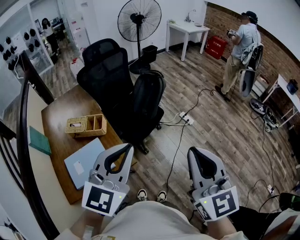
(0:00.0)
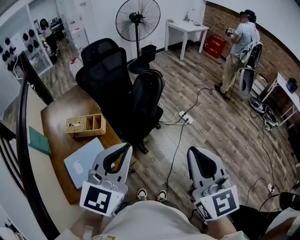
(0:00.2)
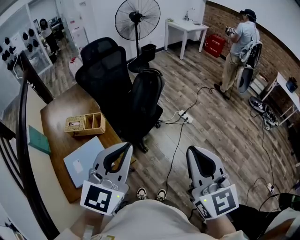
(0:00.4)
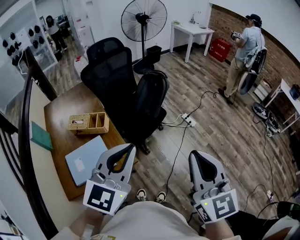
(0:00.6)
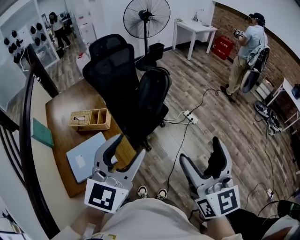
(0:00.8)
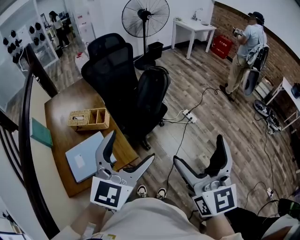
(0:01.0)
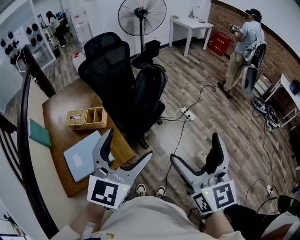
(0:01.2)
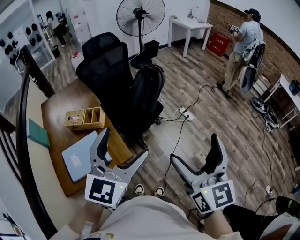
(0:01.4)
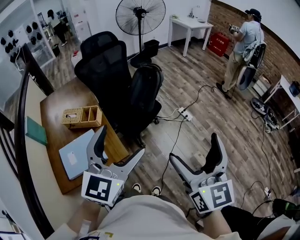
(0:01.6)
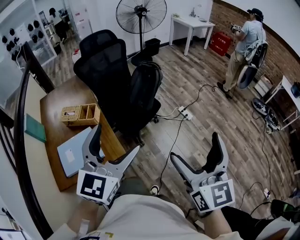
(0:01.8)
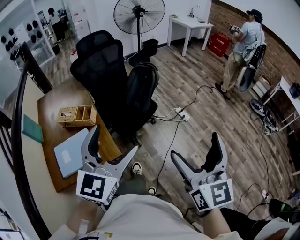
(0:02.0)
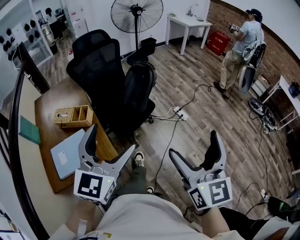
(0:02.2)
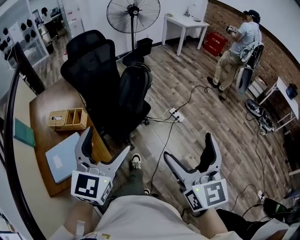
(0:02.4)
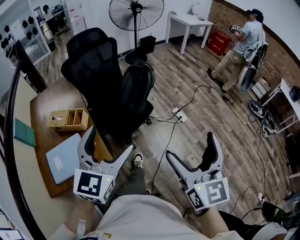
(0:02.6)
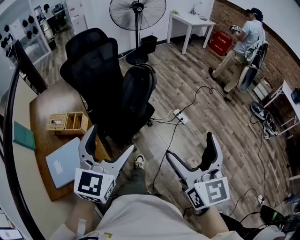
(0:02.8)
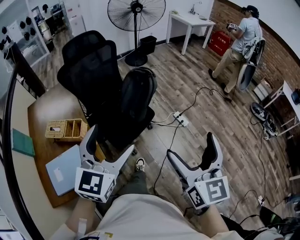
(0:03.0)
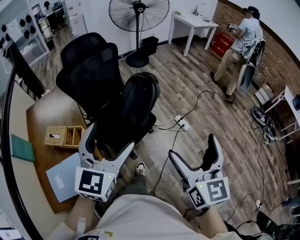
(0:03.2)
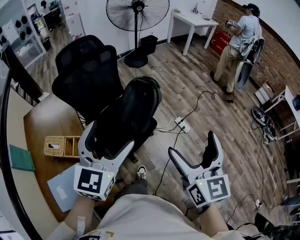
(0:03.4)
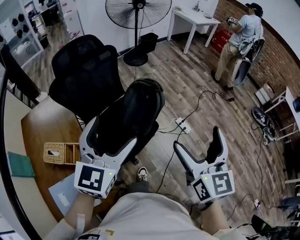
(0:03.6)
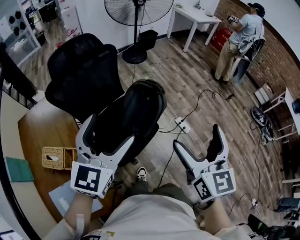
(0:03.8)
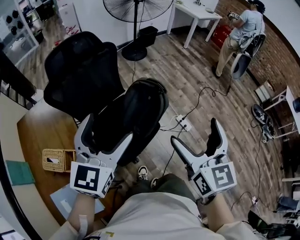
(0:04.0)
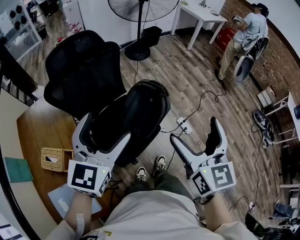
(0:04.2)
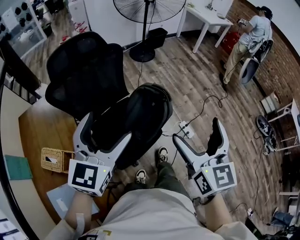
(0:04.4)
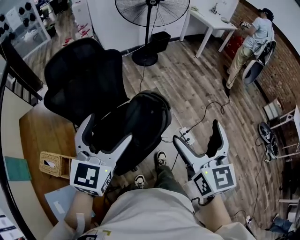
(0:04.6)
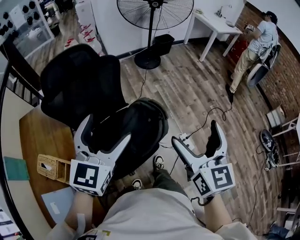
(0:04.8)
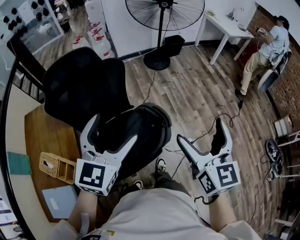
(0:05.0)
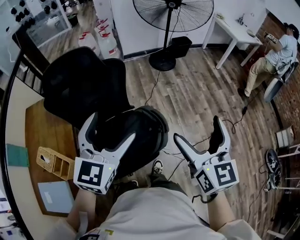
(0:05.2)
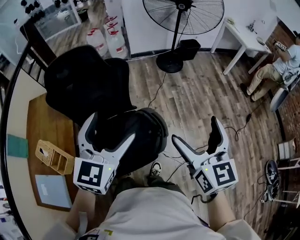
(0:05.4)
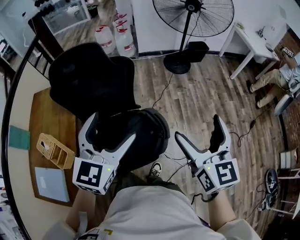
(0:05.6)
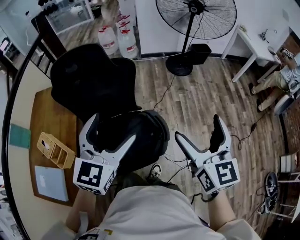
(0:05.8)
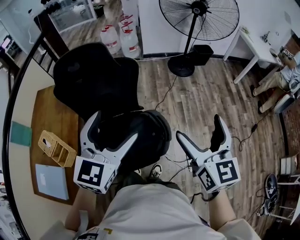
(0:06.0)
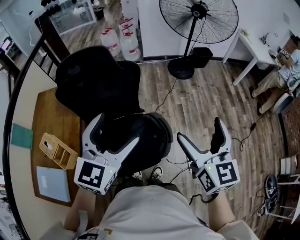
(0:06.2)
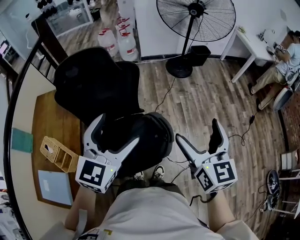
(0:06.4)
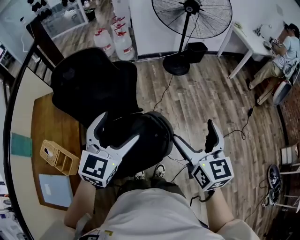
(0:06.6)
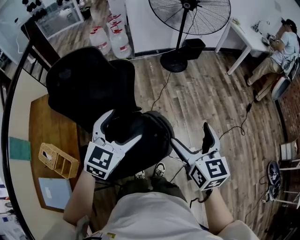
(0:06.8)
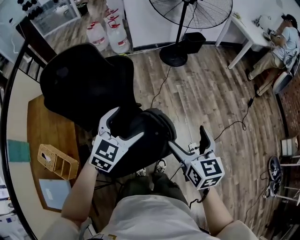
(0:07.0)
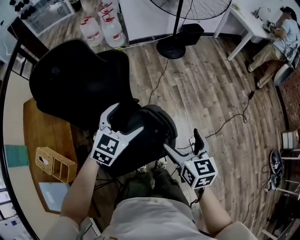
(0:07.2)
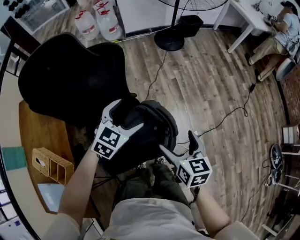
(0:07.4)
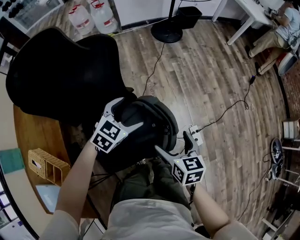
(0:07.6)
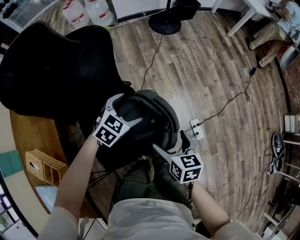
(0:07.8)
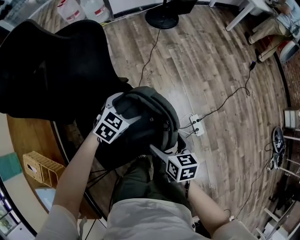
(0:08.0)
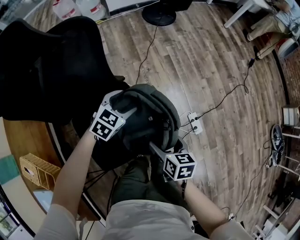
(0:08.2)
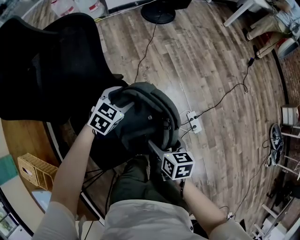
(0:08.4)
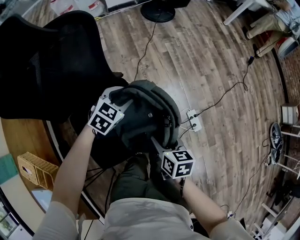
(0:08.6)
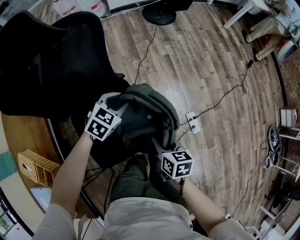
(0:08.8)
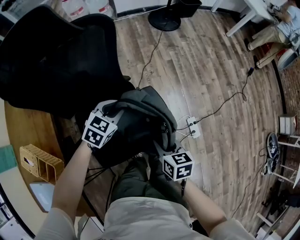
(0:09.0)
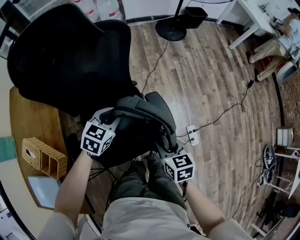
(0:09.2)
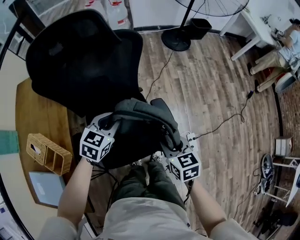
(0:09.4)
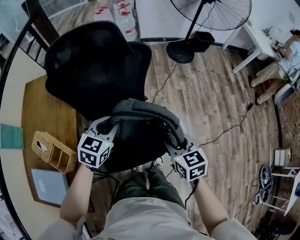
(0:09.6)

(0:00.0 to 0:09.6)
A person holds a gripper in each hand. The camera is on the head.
0:00.0 - 0:01.6: The right gripper shifts roughly 5 cm to the right, and opens its fingers, while the left gripper opens.
0:01.6 - 0:03.2: The grippers both shift forward by approximately 25 cm.
0:03.2 - 0:04.8: Both grippers move forward, some 35 cm.
0:04.8 - 0:06.4: The left gripper shifts approximately 10 cm forward and to the right. The right gripper heads forward, covering about 15 cm.
0:06.4 - 0:08.0: Both grippers move downward, roughly 40 cm. The right gripper angles its fingers downward, by some 30 degrees. The left gripper points its fingers about 30 degrees further downward.
0:08.0 - 0:09.6: The left gripper shifts roughly 30 cm upward, to the left and backward, changes its angle by about 40 degrees, and closes up. The right gripper is displaced upward and to the left by approximately 20 cm, changes its angle by some 30 degrees, and closes.

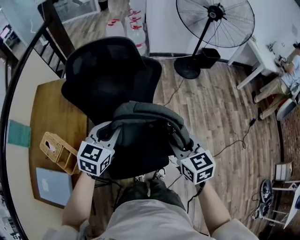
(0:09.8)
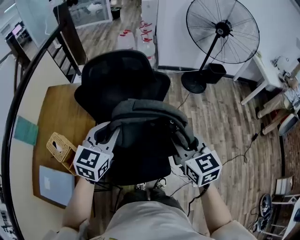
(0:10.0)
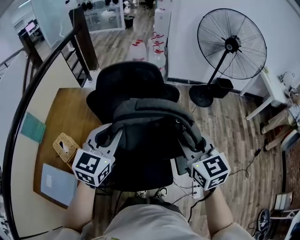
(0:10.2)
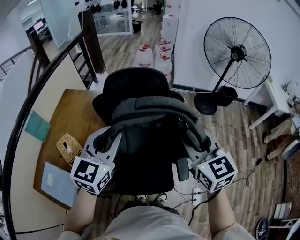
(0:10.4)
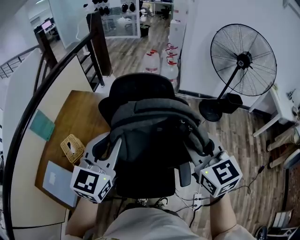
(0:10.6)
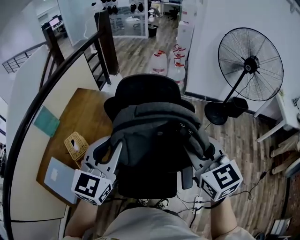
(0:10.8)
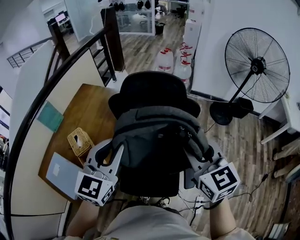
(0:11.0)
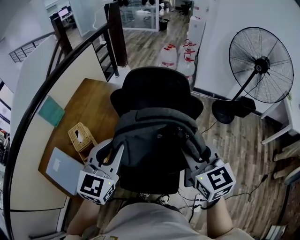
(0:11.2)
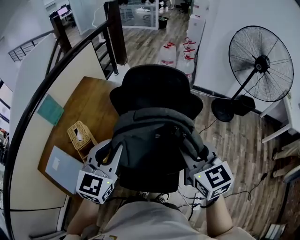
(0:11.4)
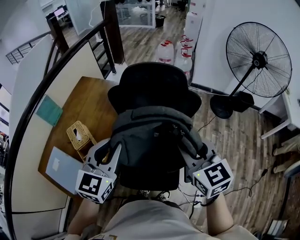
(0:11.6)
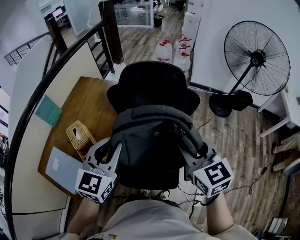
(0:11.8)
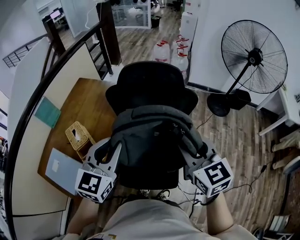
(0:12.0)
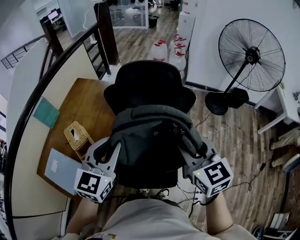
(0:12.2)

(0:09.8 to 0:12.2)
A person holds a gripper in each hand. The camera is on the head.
0:09.8 - 0:11.0: Both grippers move upward and to the left, some 20 cm. The left gripper rotates some 30 degrees. The right gripper turns by about 30 degrees.
0:11.0 - 0:12.2: The grippers stay close to where they were, moving slightly.

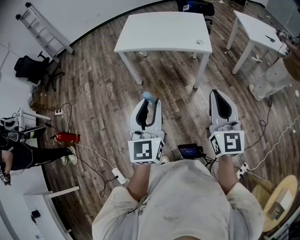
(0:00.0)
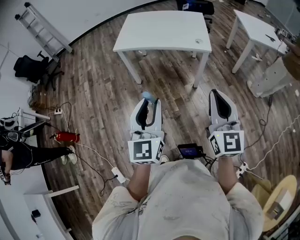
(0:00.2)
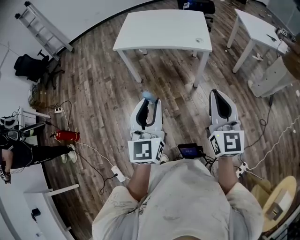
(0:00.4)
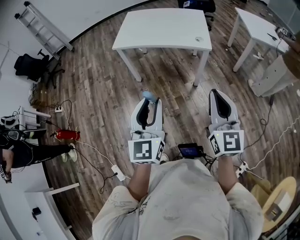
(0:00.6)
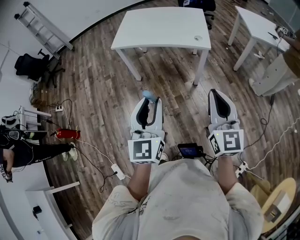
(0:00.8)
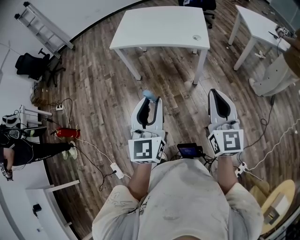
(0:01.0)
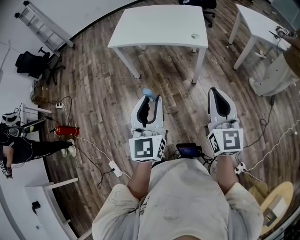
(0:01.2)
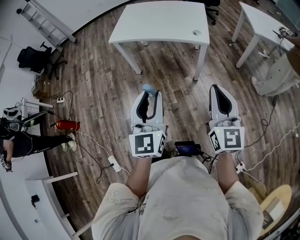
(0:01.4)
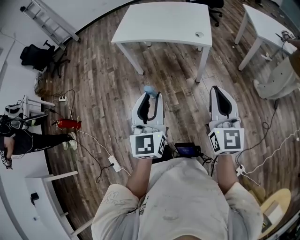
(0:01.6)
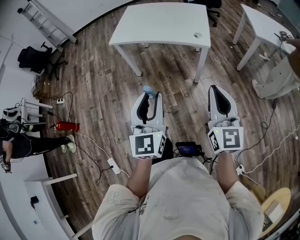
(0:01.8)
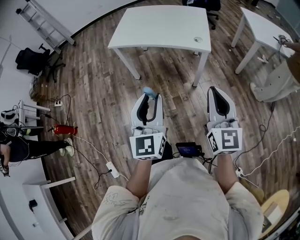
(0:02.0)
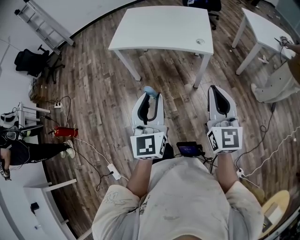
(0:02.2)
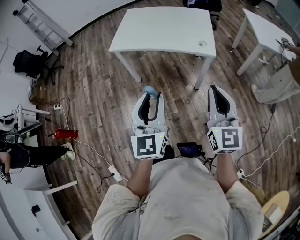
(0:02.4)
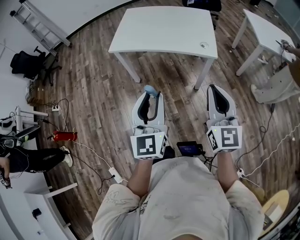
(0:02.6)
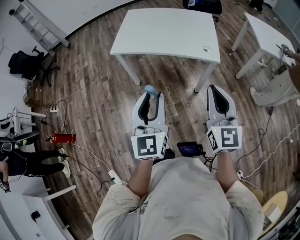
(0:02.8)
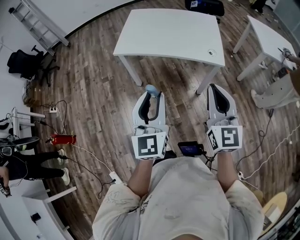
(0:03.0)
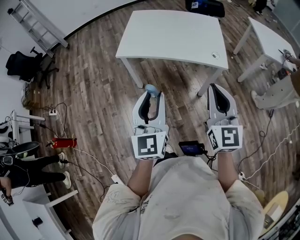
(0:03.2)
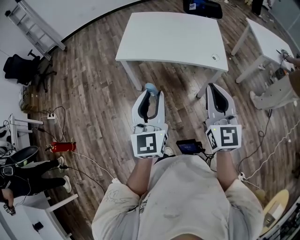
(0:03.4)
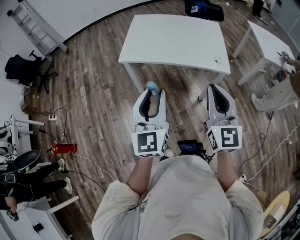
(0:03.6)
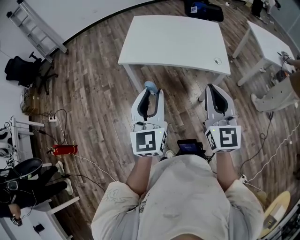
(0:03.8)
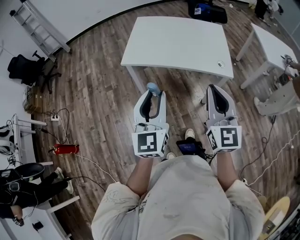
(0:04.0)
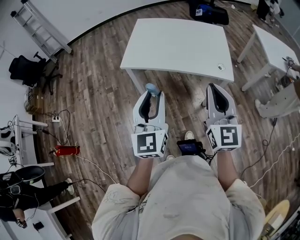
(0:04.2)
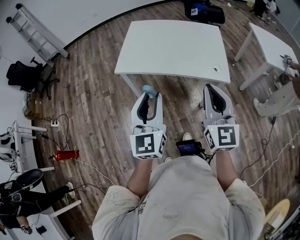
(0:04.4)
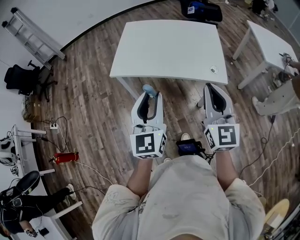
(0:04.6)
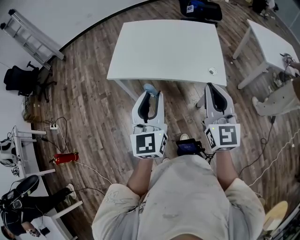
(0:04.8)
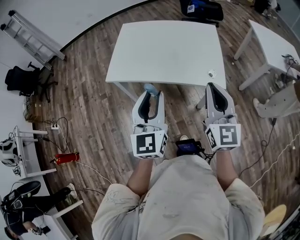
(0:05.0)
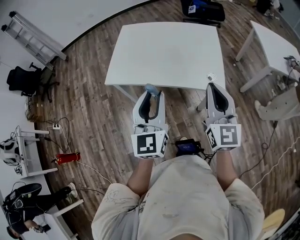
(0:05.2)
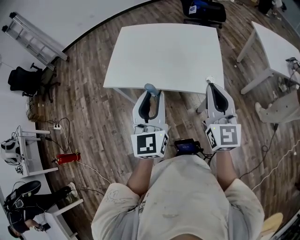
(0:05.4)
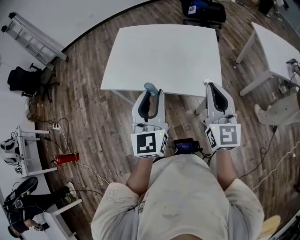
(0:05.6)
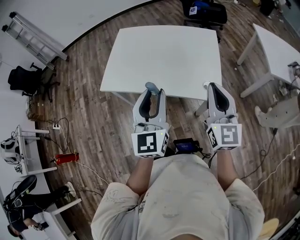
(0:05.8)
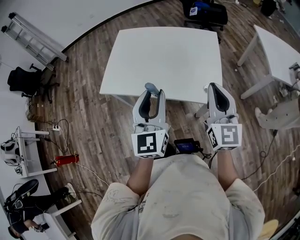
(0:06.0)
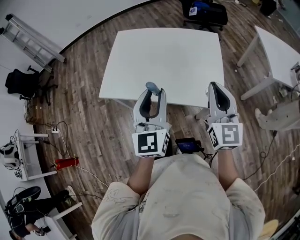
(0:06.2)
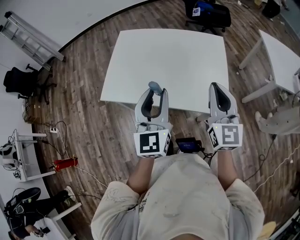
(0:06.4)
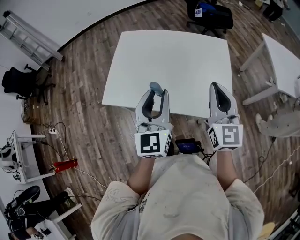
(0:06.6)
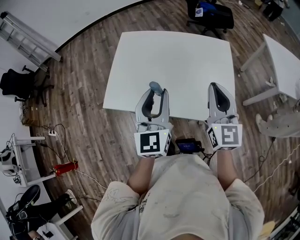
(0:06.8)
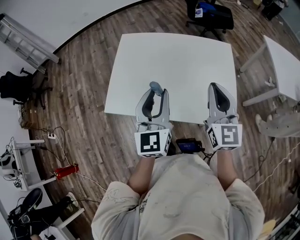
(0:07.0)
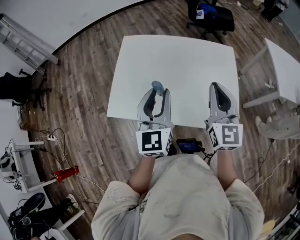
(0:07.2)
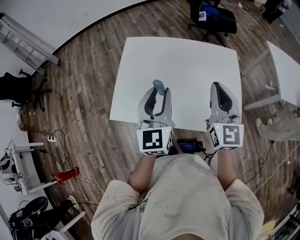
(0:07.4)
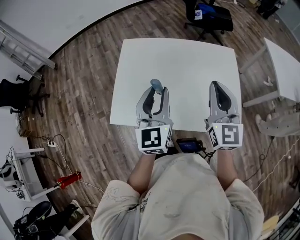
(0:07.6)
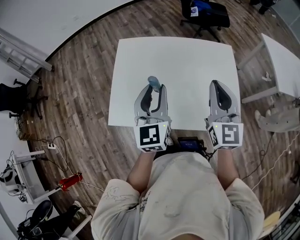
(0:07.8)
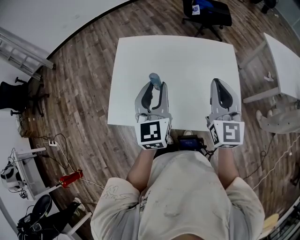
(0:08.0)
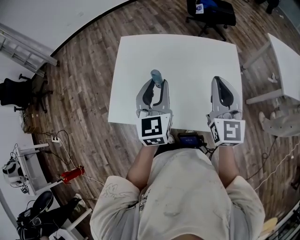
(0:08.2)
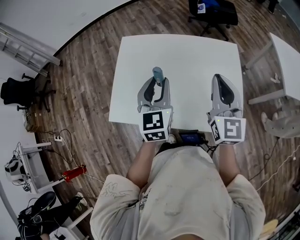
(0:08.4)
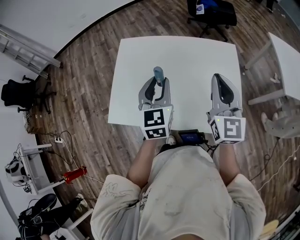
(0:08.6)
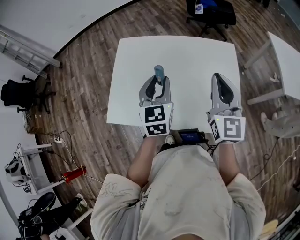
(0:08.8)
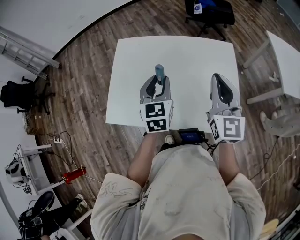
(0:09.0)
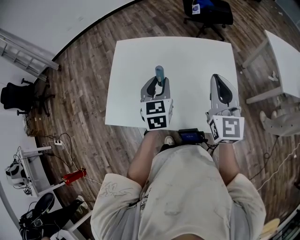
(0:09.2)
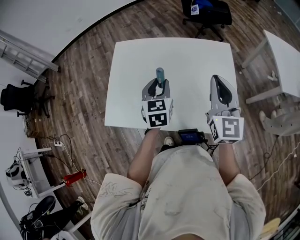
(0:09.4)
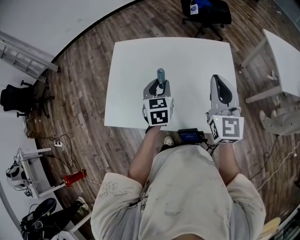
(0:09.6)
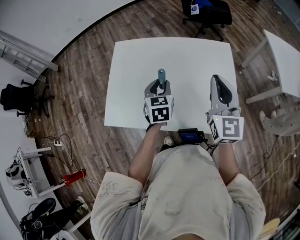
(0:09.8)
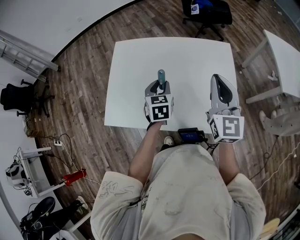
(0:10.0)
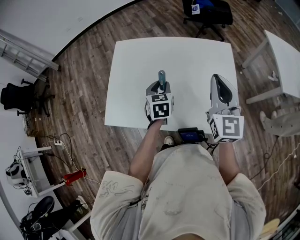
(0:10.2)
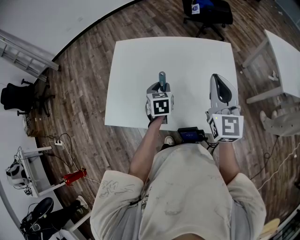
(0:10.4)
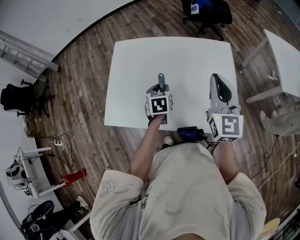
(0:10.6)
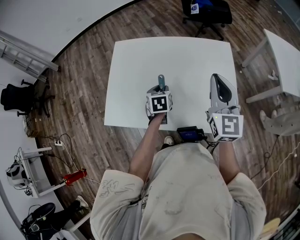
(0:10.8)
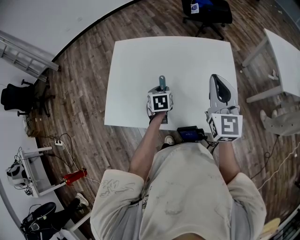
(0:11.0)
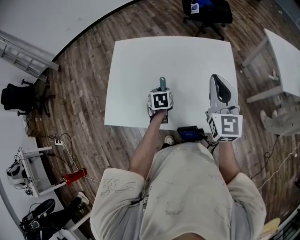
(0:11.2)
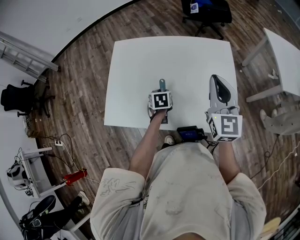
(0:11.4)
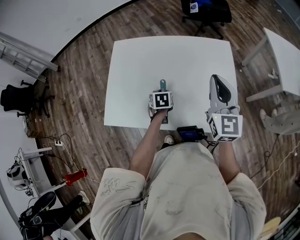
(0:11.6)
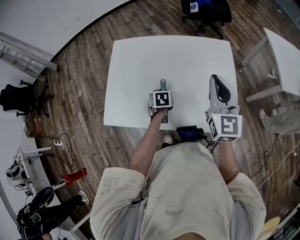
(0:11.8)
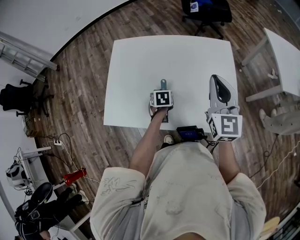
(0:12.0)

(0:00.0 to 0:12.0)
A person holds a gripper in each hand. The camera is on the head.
0:00.0 - 0:06.0: The grippers move only a little.
0:06.0 - 0:07.6: The grippers stay close to where they were, moving slightly.
0:07.6 - 0:09.0: The left gripper goes roughly 5 cm downward.
0:09.0 - 0:10.4: The left gripper goes some 15 cm downward, and swivels roughly 20 degrees.
0:10.4 - 0:12.0: The left gripper shifts approximately 10 cm downward.
